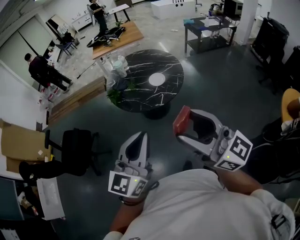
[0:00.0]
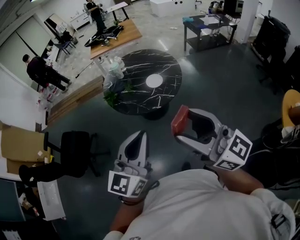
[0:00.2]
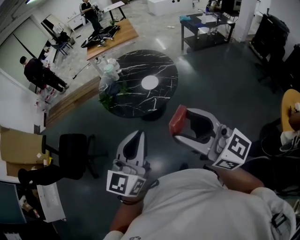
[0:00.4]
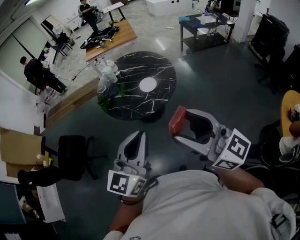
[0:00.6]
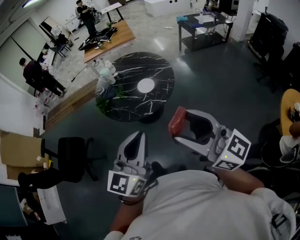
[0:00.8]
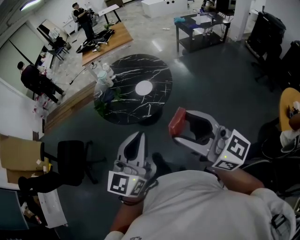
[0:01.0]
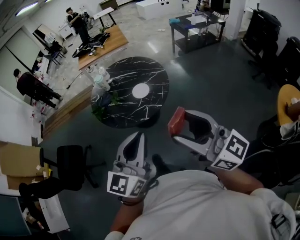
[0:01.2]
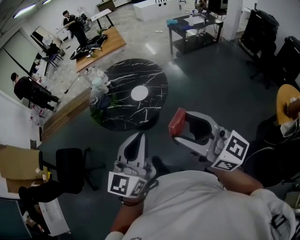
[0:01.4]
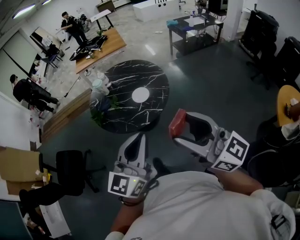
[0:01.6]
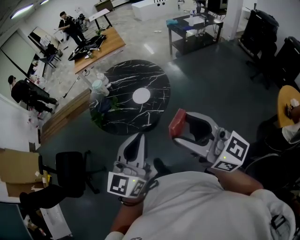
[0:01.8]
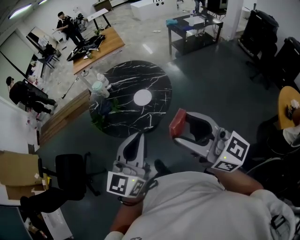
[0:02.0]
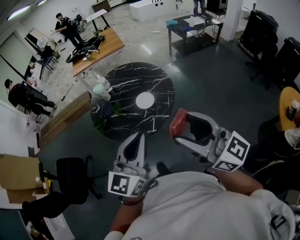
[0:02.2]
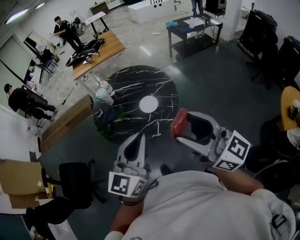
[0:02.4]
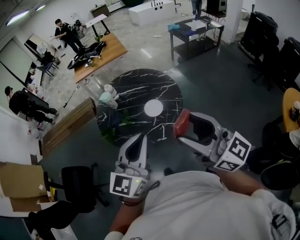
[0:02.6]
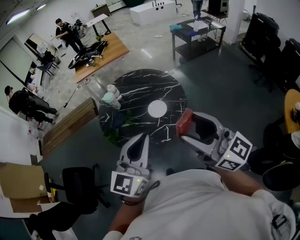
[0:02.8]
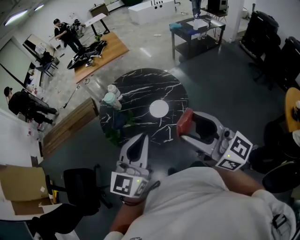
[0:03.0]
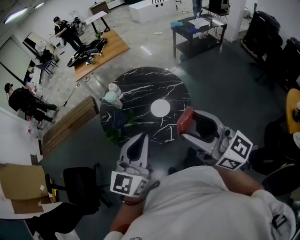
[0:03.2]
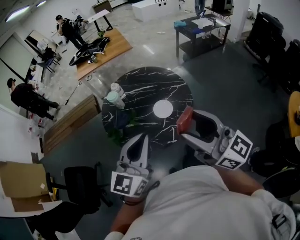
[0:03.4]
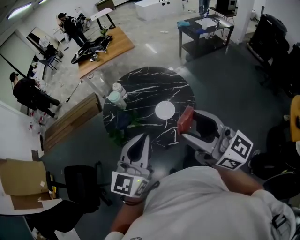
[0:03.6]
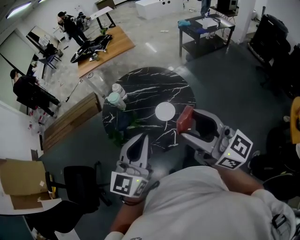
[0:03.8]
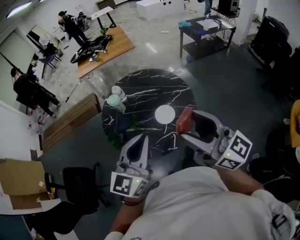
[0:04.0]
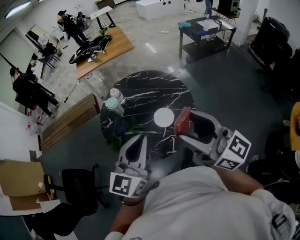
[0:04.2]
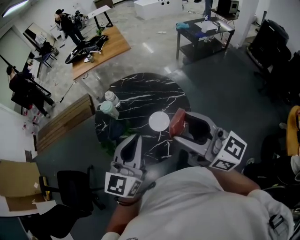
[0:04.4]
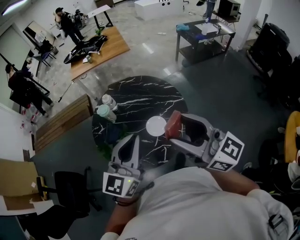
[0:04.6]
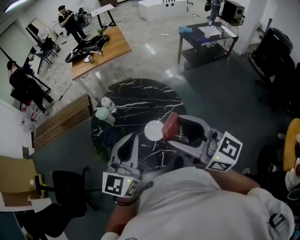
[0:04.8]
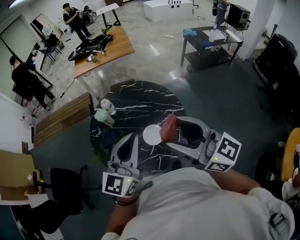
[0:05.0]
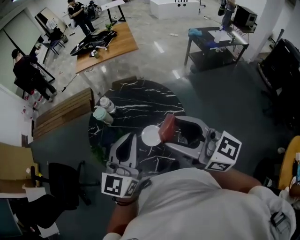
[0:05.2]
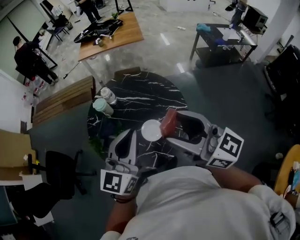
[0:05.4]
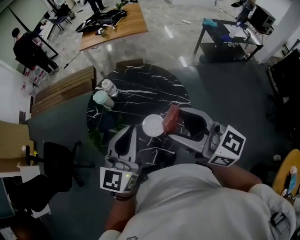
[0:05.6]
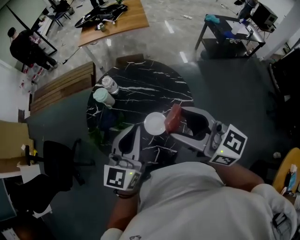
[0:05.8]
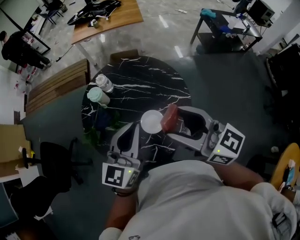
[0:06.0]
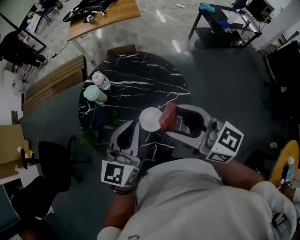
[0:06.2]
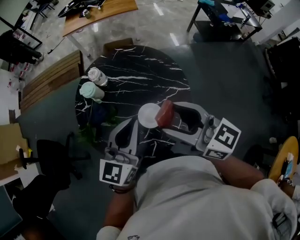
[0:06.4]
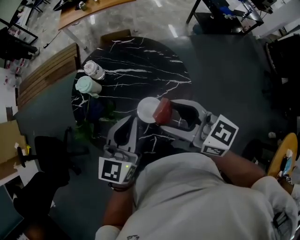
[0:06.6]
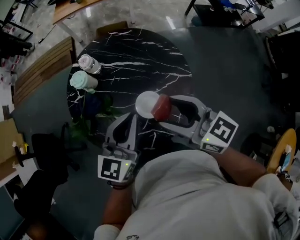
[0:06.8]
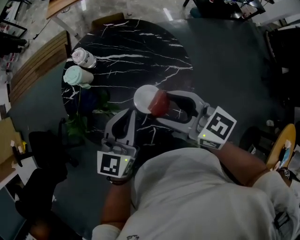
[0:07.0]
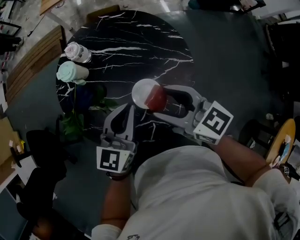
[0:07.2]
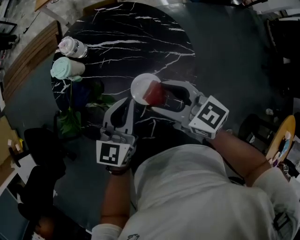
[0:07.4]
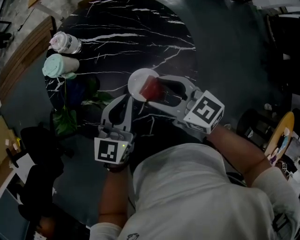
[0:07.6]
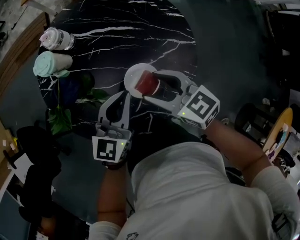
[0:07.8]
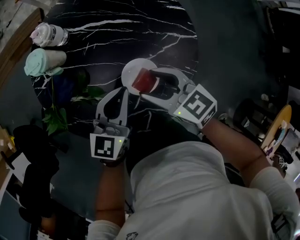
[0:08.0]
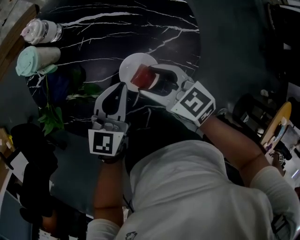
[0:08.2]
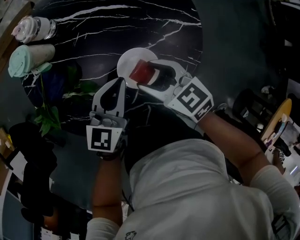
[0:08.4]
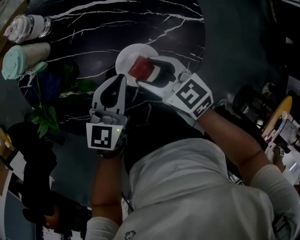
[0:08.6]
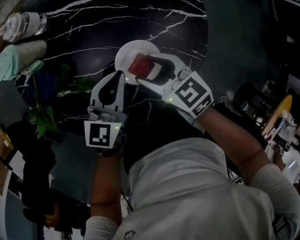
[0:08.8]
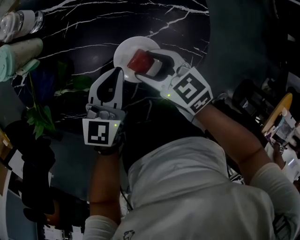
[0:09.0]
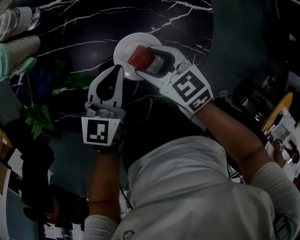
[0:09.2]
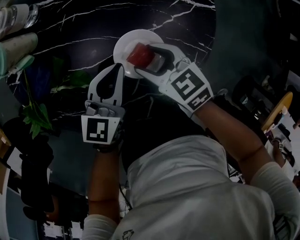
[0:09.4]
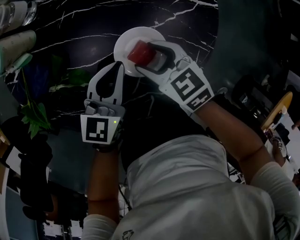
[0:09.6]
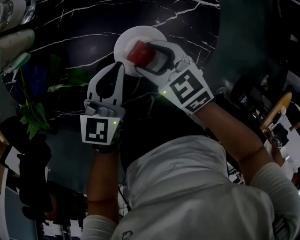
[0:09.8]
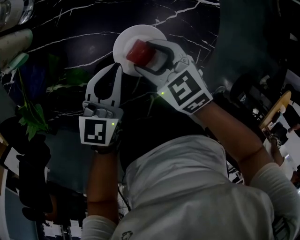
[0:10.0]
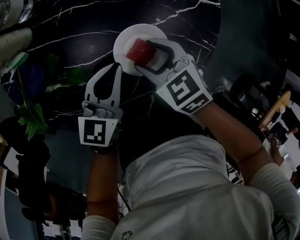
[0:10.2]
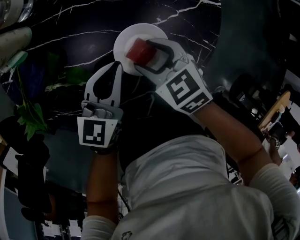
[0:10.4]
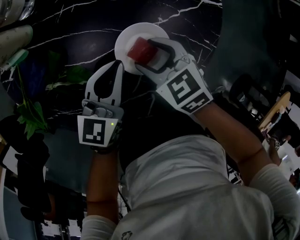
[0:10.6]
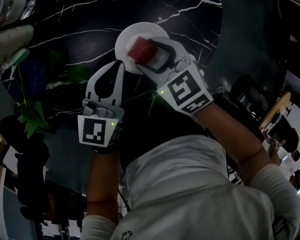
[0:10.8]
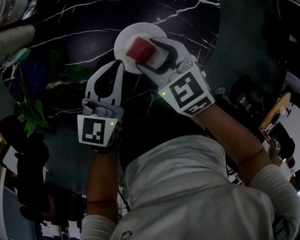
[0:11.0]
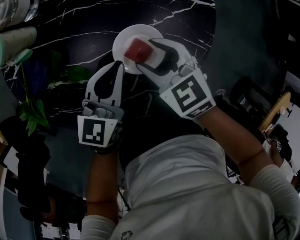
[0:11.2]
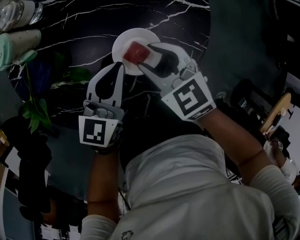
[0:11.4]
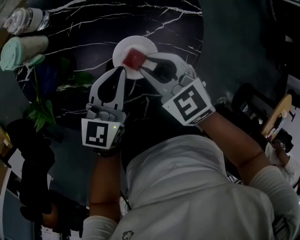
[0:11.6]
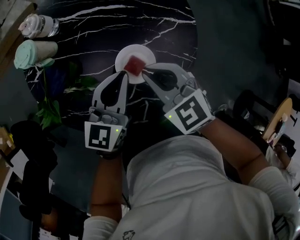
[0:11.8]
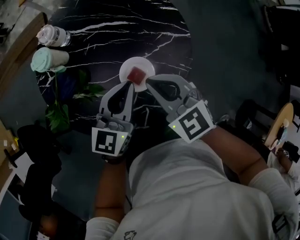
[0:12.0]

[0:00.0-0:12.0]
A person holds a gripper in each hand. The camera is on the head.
0:00.0 to 0:01.6: The right gripper goes roughly 15 cm to the right and forward; the left gripper travels forward and to the right by some 20 cm.
0:01.6 to 0:03.0: Both grippers move forward and to the left, some 20 cm.
0:03.0 to 0:04.4: Both grippers travel together forward, about 15 cm.
0:04.4 to 0:06.0: Both grippers travel together forward, downward and to the right, some 20 cm. The right gripper changes its angle by roughly 20 degrees.
0:06.0 to 0:07.6: Both grippers move downward, approximately 25 cm. The right gripper rotates roughly 30 degrees.
0:07.6 to 0:09.0: The two grippers go roughly 15 cm downward.
0:09.0 to 0:10.4: The grippers stay close to where they were, moving slightly.
0:10.4 to 0:12.0: The two grippers go approximately 20 cm upward. The right gripper rotates some 20 degrees, and closes.

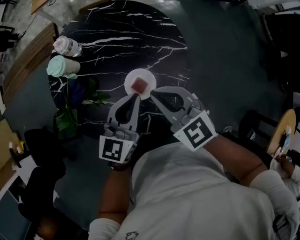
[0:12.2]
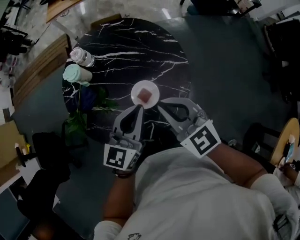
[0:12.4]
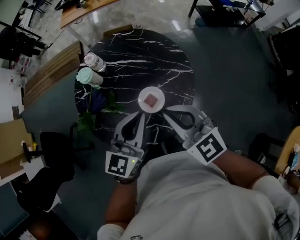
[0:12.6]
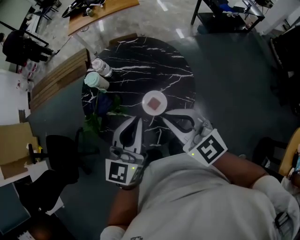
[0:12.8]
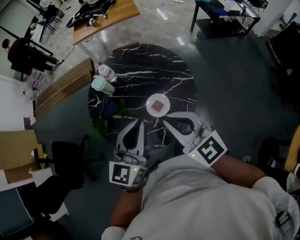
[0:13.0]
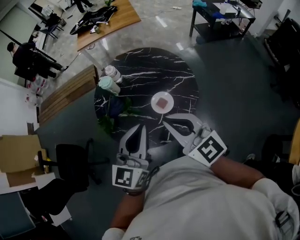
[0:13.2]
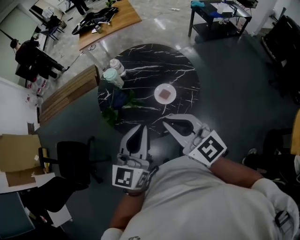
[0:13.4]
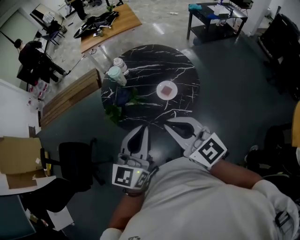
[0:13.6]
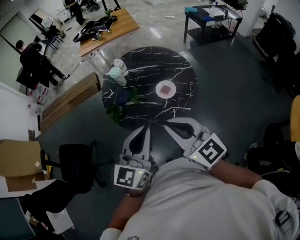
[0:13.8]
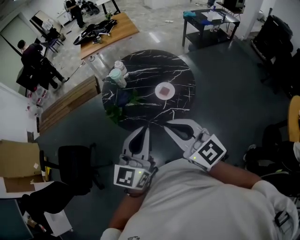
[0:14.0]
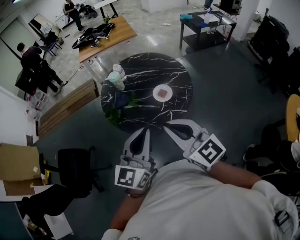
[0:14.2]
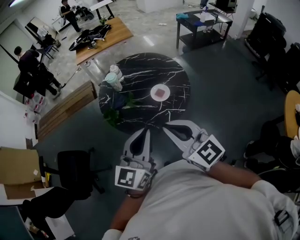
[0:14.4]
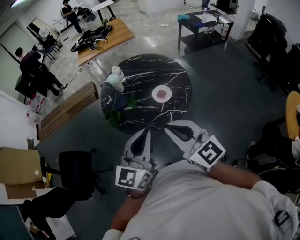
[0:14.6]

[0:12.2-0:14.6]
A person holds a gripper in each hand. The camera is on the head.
0:12.2 to 0:13.4: Both grippers move backward, upward and to the left, roughly 35 cm. The right gripper changes its angle by approximately 30 degrees.
0:13.4 to 0:14.6: The two grippers go roughly 15 cm backward.

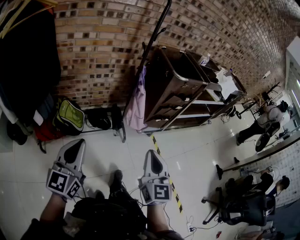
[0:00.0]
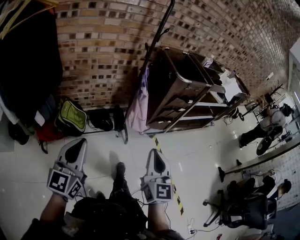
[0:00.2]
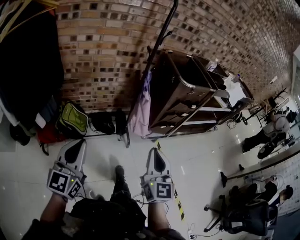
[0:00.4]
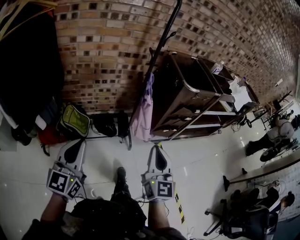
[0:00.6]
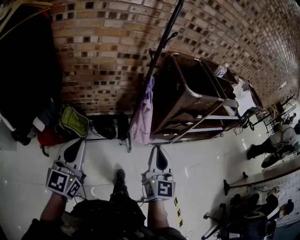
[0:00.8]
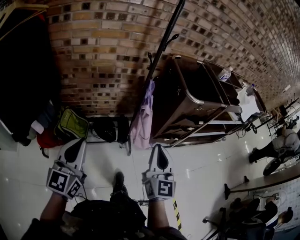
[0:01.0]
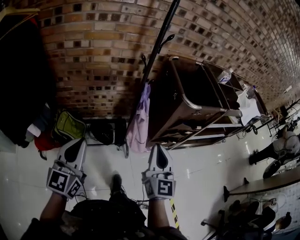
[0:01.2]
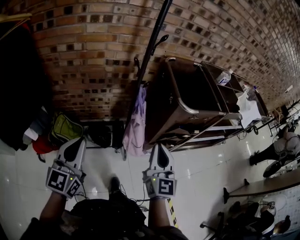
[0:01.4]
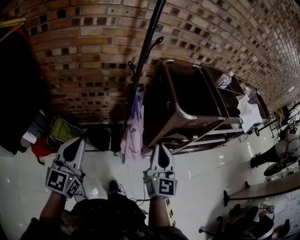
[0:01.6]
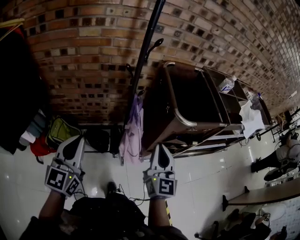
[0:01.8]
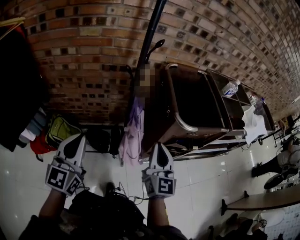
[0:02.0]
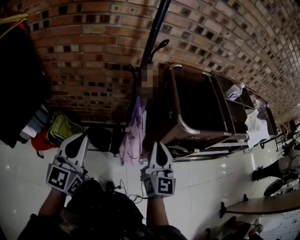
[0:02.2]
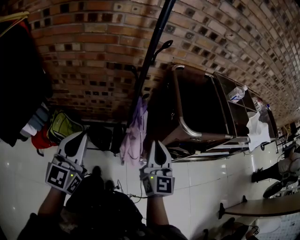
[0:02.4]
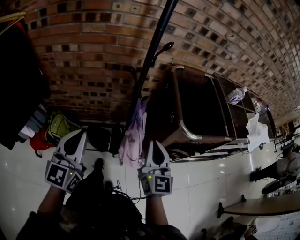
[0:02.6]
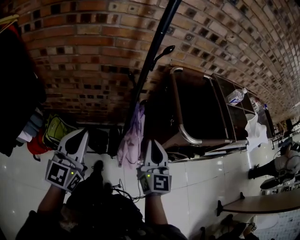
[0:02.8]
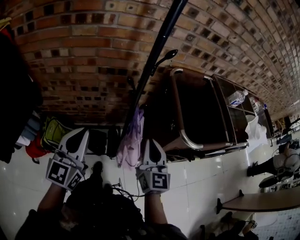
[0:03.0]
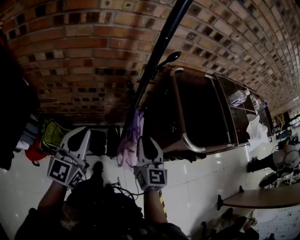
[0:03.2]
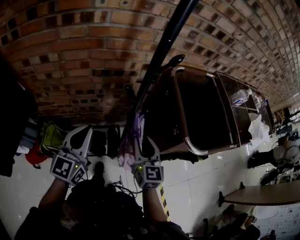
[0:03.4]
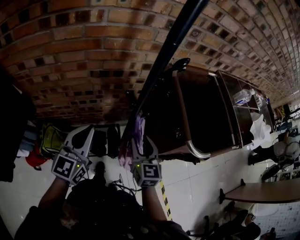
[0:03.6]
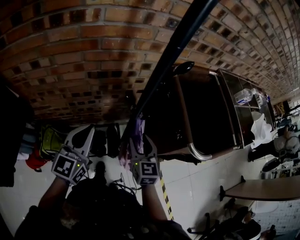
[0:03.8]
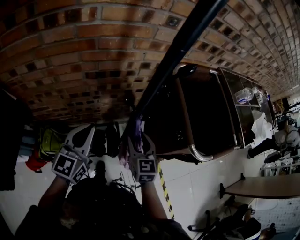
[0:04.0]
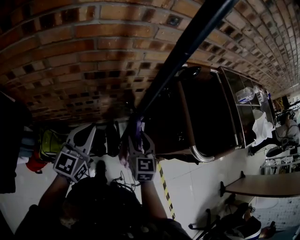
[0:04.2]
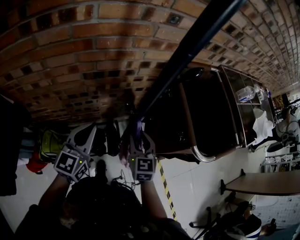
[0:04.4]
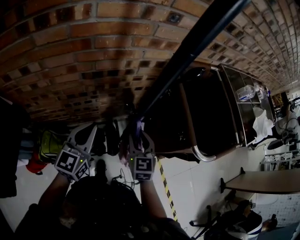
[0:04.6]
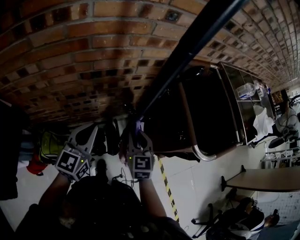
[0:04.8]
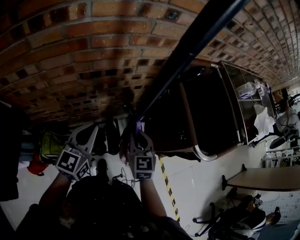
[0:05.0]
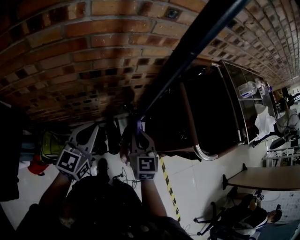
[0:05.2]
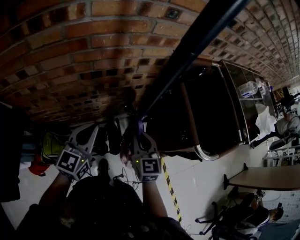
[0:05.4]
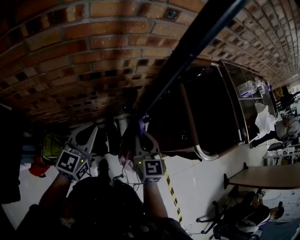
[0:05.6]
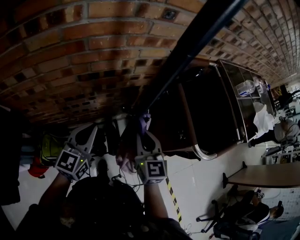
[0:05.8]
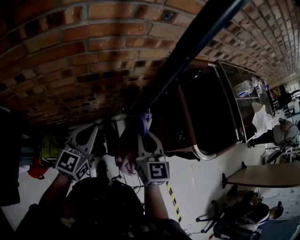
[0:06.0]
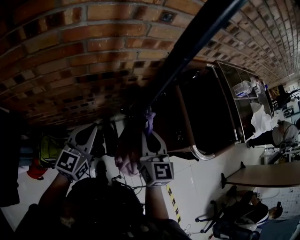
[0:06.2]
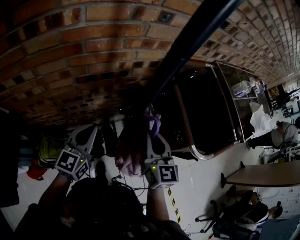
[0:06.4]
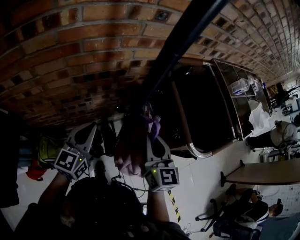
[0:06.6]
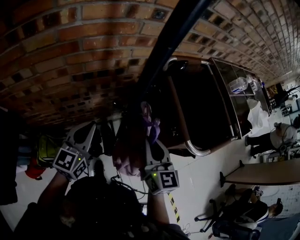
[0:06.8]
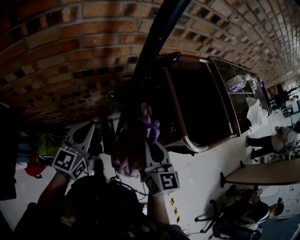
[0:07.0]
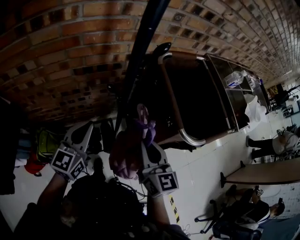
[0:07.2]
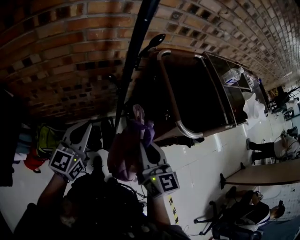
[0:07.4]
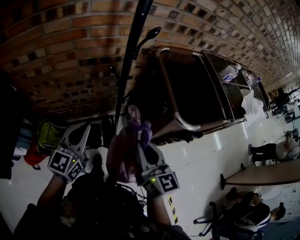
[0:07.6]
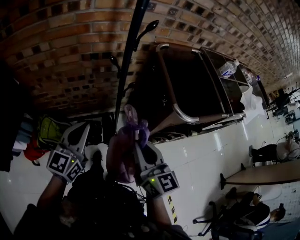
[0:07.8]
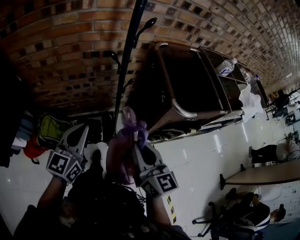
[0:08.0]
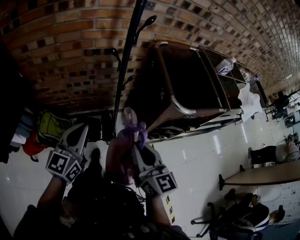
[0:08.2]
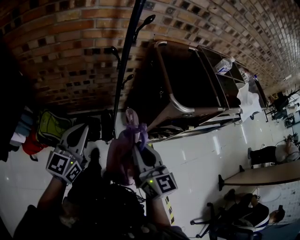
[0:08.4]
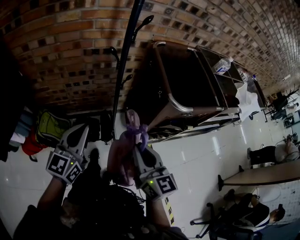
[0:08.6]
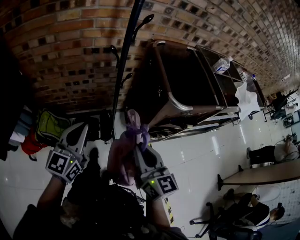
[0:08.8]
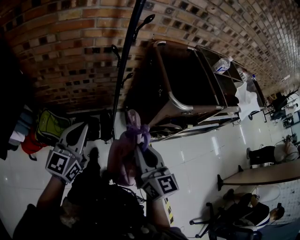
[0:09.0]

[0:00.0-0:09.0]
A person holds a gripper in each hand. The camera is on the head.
0:00.0 to 0:01.6: Both grippers move forward, roughly 35 cm.
0:01.6 to 0:03.0: Both grippers travel together forward, about 15 cm.
0:03.0 to 0:04.4: The right gripper goes about 20 cm forward, downward and to the left, changes its angle by about 20 degrees, and opens. The left gripper shifts about 20 cm forward and downward.
0:04.4 to 0:06.0: The right gripper shifts roughly 10 cm upward, and closes its fingers.
0:06.0 to 0:07.6: Both grippers travel together backward, roughly 15 cm.
0:07.6 to 0:09.0: Both grippers travel together backward, some 10 cm.
